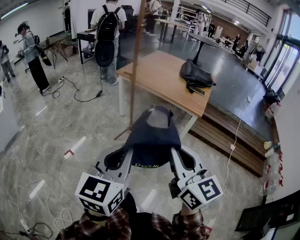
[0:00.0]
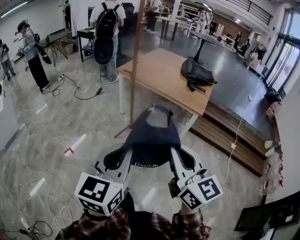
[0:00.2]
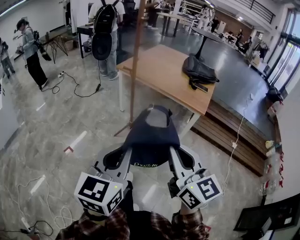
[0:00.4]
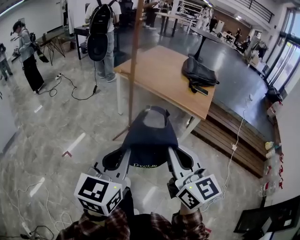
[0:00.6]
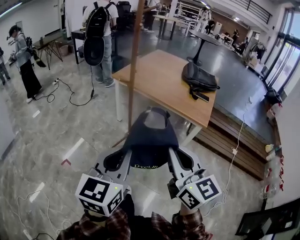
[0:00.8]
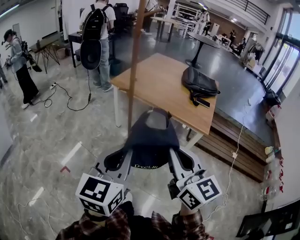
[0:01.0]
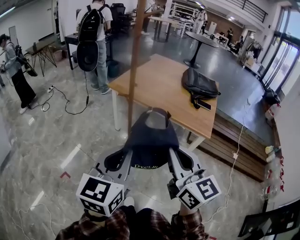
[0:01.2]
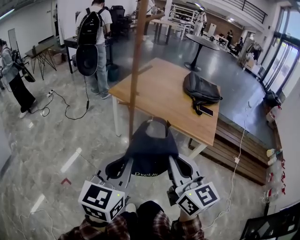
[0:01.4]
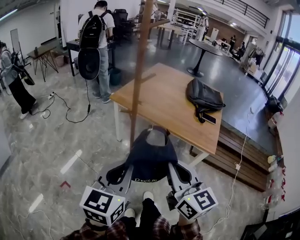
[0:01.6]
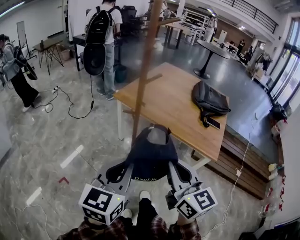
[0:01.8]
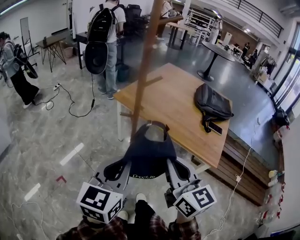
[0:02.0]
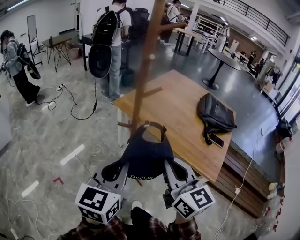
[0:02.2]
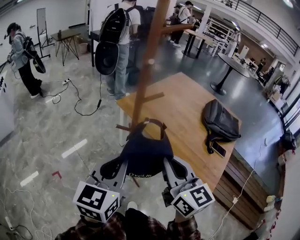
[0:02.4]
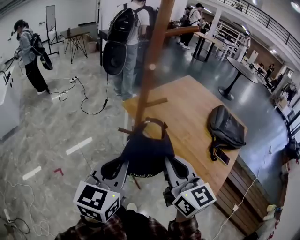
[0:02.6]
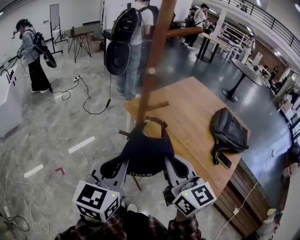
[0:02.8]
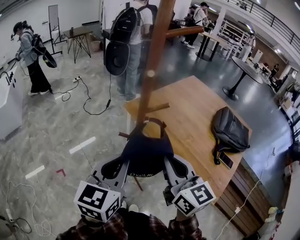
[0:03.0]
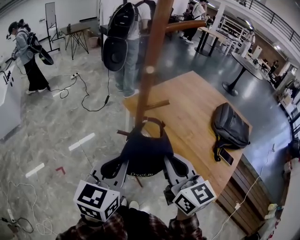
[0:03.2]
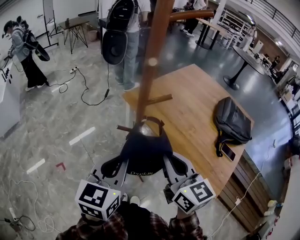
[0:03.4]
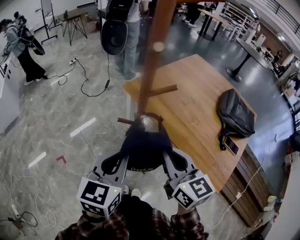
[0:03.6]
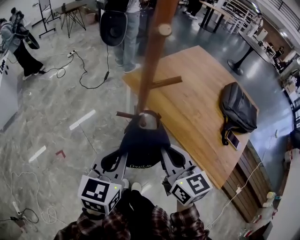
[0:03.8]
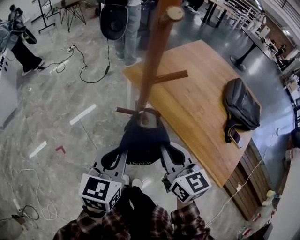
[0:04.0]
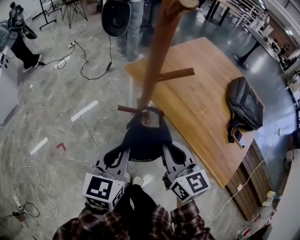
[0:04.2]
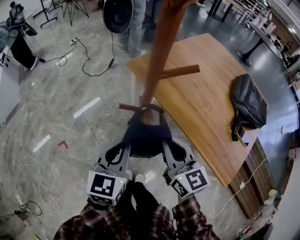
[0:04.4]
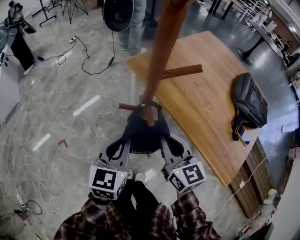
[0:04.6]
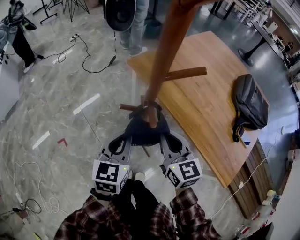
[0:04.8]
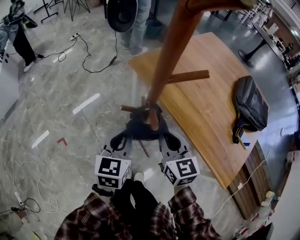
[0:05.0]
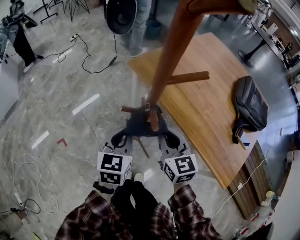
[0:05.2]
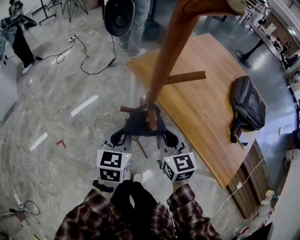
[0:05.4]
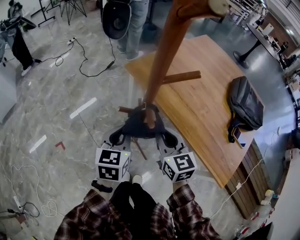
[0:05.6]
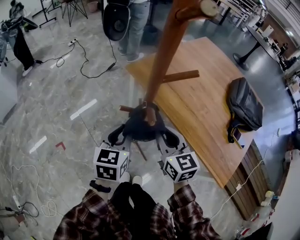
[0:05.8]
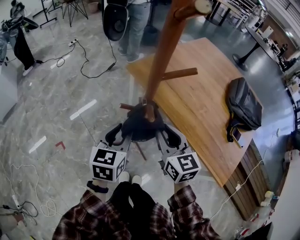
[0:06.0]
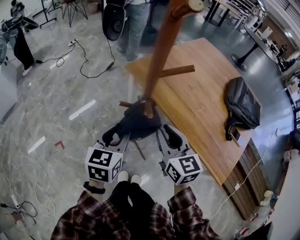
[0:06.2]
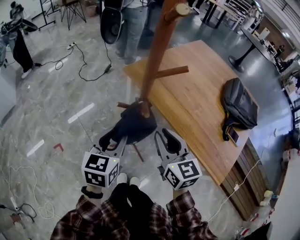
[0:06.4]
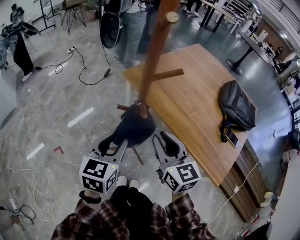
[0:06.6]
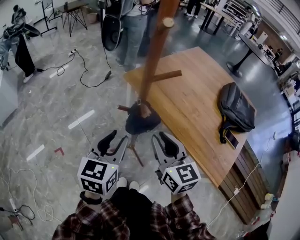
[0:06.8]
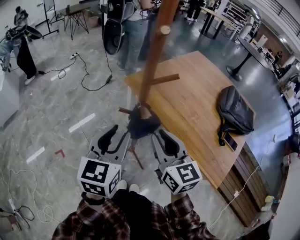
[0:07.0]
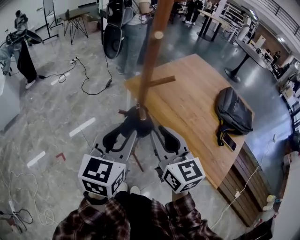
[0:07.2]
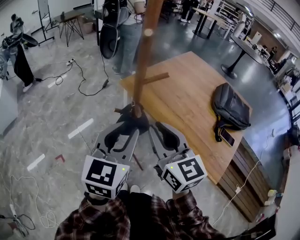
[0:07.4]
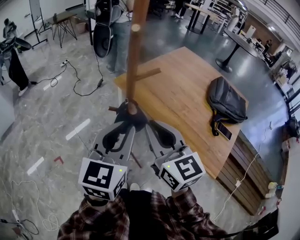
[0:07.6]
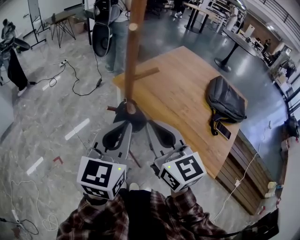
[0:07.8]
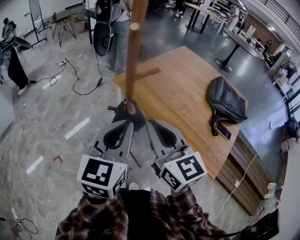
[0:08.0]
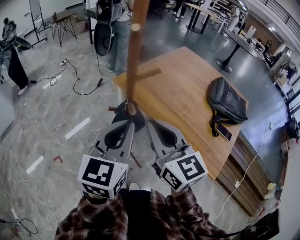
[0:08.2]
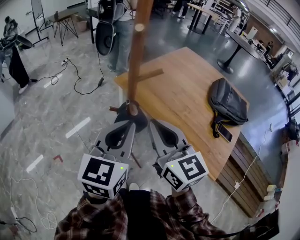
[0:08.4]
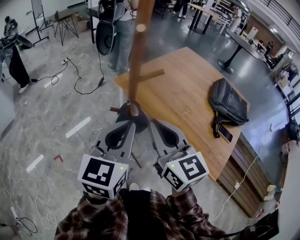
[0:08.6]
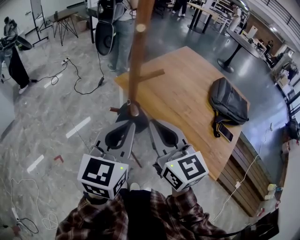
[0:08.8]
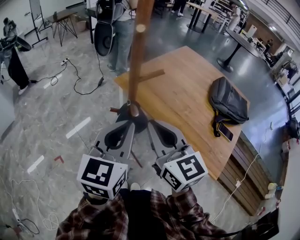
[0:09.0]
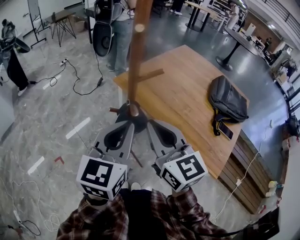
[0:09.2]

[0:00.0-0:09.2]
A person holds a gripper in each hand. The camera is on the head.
0:00.0 to 0:01.6: The grippers both shift forward by roughly 35 cm.
0:01.6 to 0:03.0: The grippers both shift forward by some 25 cm. The left gripper swivels about 20 degrees; the right gripper swivels approximately 20 degrees.
0:03.0 to 0:04.6: The two grippers go about 20 cm downward and forward.
0:04.6 to 0:06.2: The left gripper opens.
0:06.2 to 0:07.6: Both grippers move upward and backward, roughly 20 cm.
0:07.6 to 0:09.2: The grippers move only a little.

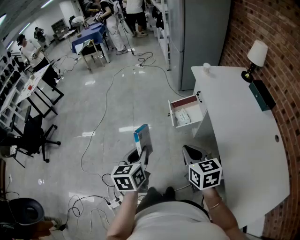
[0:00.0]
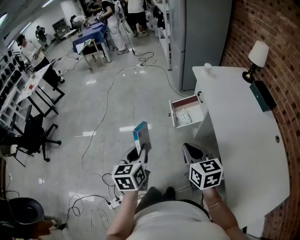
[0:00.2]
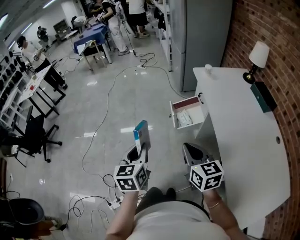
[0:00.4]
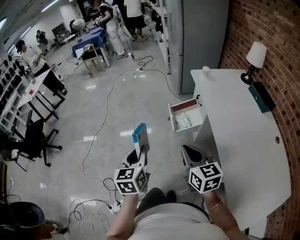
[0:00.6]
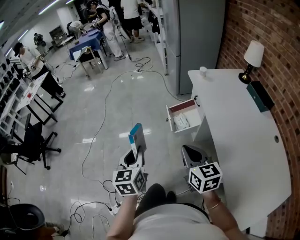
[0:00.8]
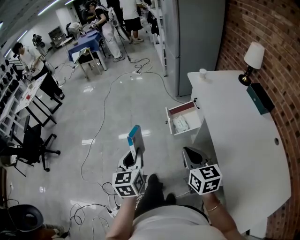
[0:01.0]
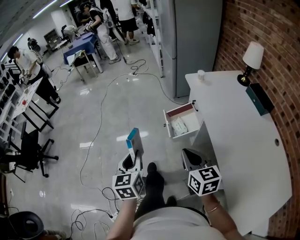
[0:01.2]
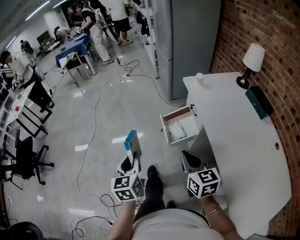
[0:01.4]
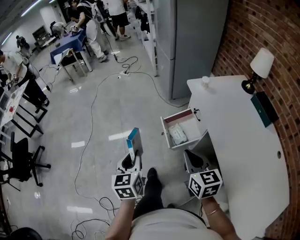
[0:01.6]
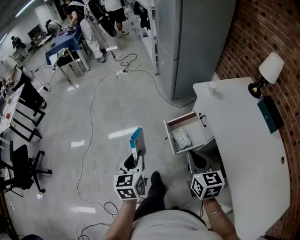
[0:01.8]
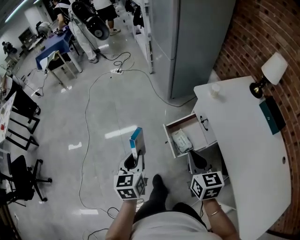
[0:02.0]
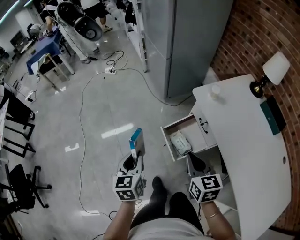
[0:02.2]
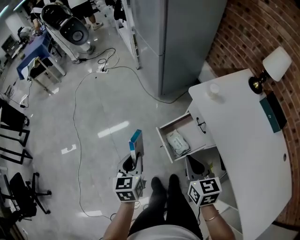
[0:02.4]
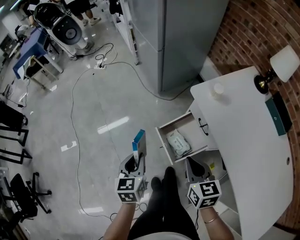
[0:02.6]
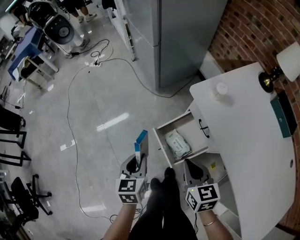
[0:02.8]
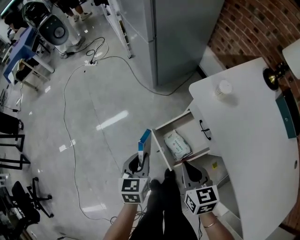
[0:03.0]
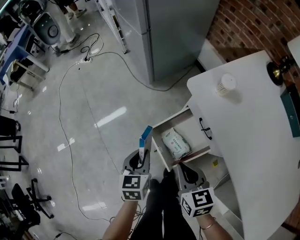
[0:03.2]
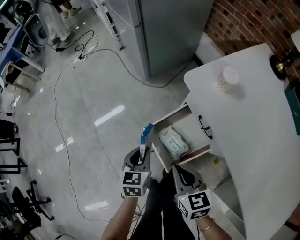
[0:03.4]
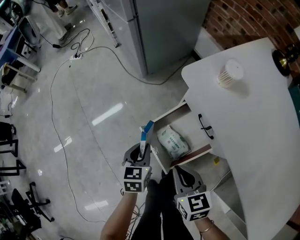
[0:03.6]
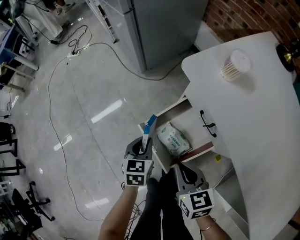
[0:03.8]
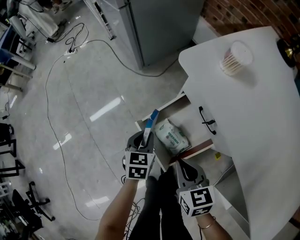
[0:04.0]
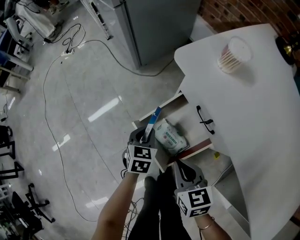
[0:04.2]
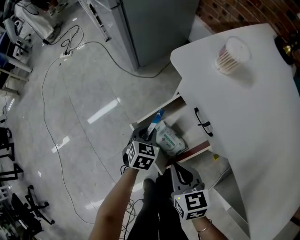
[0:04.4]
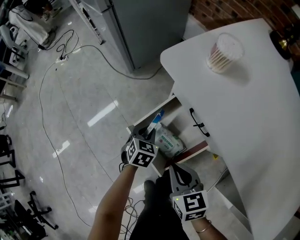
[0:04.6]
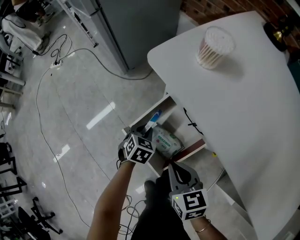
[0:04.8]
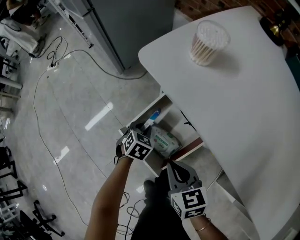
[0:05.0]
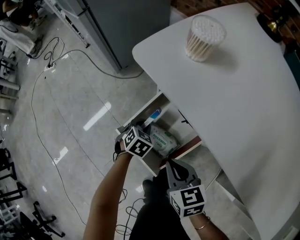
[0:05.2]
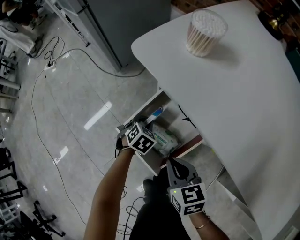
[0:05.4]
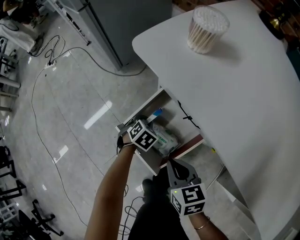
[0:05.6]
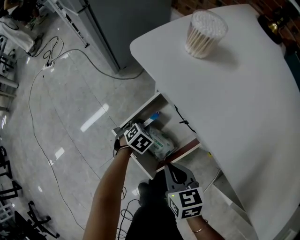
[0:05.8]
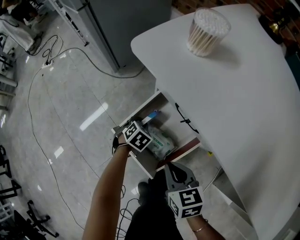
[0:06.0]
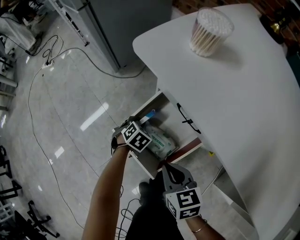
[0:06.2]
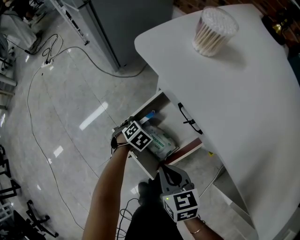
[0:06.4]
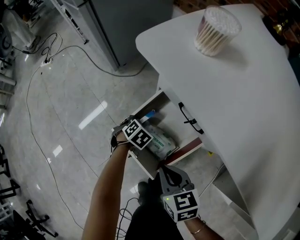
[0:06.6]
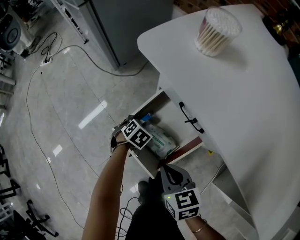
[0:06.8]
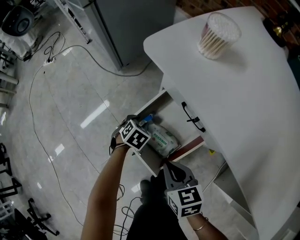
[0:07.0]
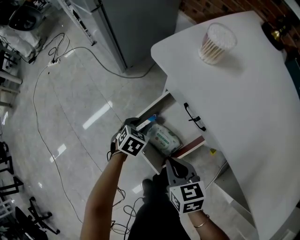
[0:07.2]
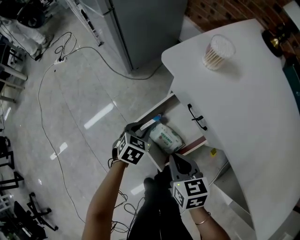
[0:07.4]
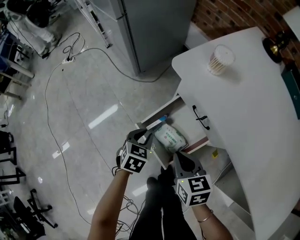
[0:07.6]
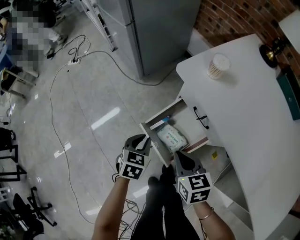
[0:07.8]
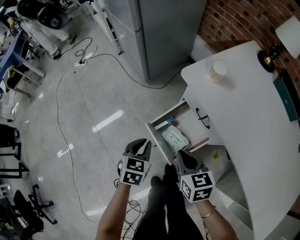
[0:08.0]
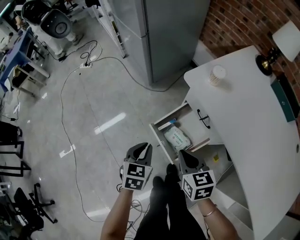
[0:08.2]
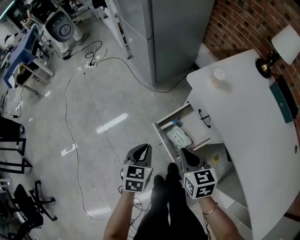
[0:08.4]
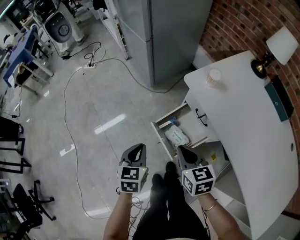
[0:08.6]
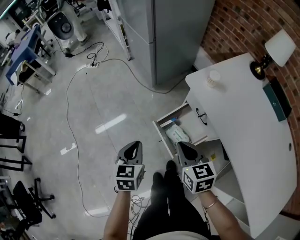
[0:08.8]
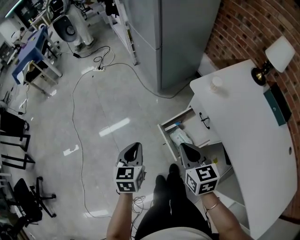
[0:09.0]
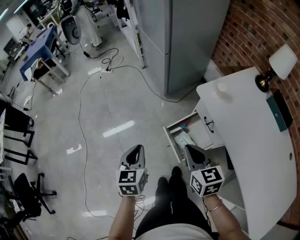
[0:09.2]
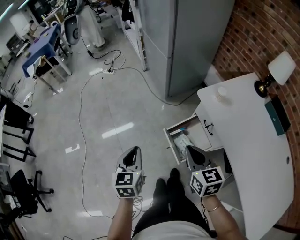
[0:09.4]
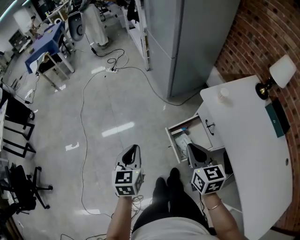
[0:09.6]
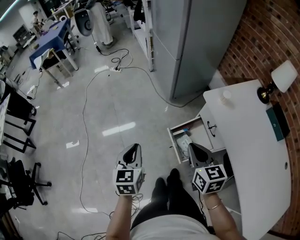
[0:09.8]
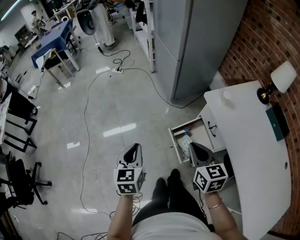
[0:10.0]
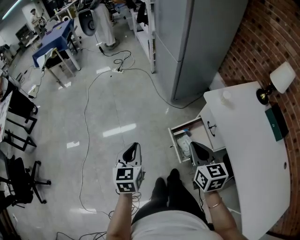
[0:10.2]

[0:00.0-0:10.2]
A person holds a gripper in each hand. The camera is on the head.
0:00.0 to 0:01.4: The two grippers go roughly 15 cm forward.
0:01.4 to 0:03.0: The two grippers travel together, forward, approximately 50 cm. Both grippers travel together downward, approximately 25 cm. The right gripper rotates roughly 20 degrees. The left gripper swivels about 30 degrees.
0:03.0 to 0:04.4: The left gripper is displaced downward and to the right by approximately 30 cm, and swivels some 30 degrees. Meanwhile the right gripper heads downward, covering roughly 20 cm.
0:04.4 to 0:05.8: The left gripper goes roughly 15 cm downward and to the right, and turns by some 30 degrees; the right gripper is displaced downward by some 5 cm.
0:05.8 to 0:07.2: The left gripper moves upward and to the left, roughly 10 cm.
0:07.2 to 0:08.8: The right gripper goes approximately 30 cm upward. Meanwhile the left gripper goes roughly 50 cm upward, backward and to the left, turns by roughly 40 degrees, and closes its fingers.
0:08.8 to 0:10.2: The left gripper moves to the left, upward and backward, approximately 20 cm; the right gripper heads upward, to the left and backward, covering roughly 15 cm.

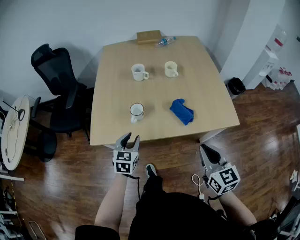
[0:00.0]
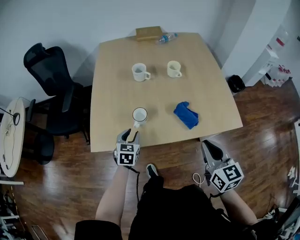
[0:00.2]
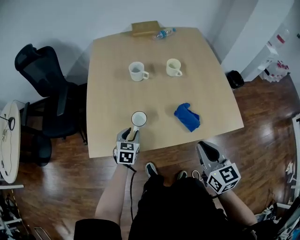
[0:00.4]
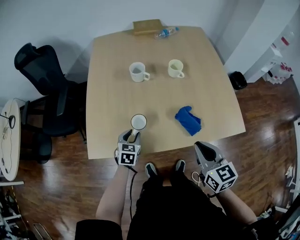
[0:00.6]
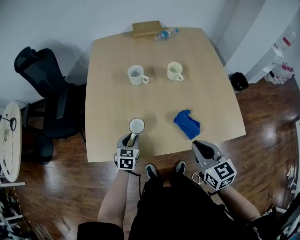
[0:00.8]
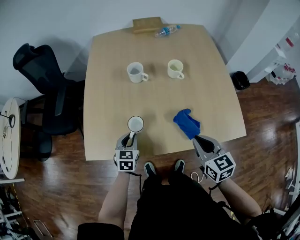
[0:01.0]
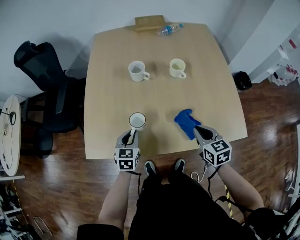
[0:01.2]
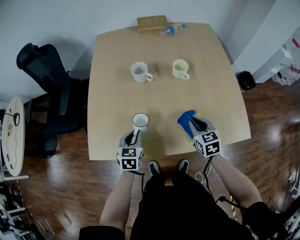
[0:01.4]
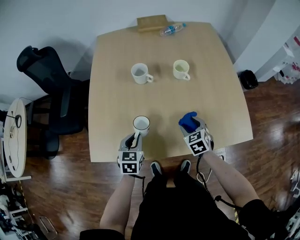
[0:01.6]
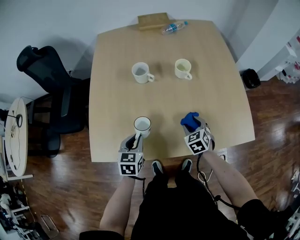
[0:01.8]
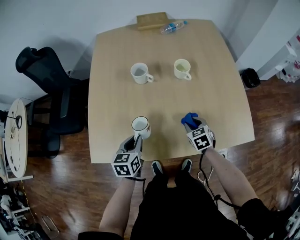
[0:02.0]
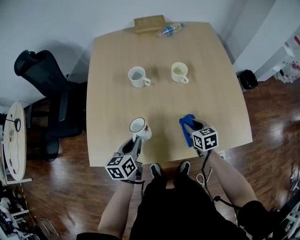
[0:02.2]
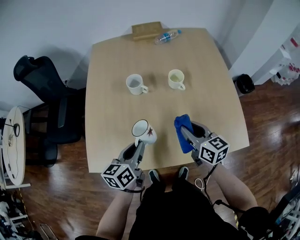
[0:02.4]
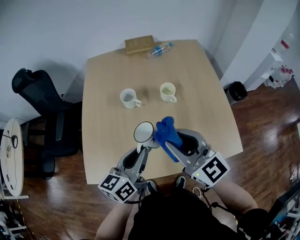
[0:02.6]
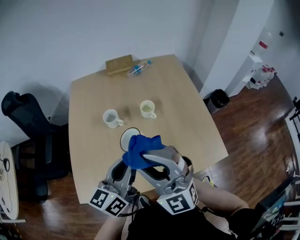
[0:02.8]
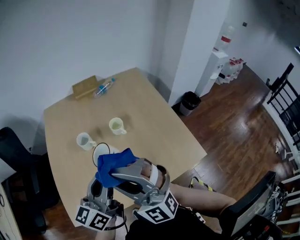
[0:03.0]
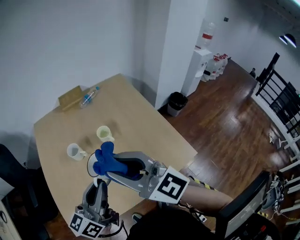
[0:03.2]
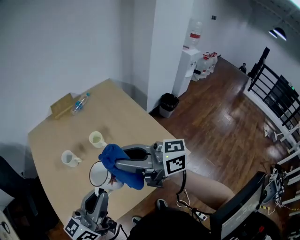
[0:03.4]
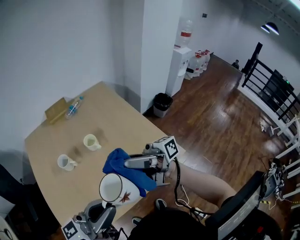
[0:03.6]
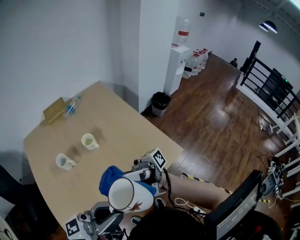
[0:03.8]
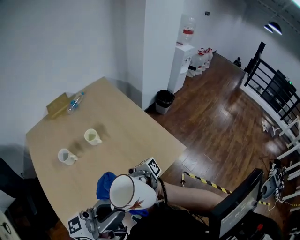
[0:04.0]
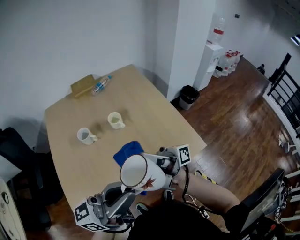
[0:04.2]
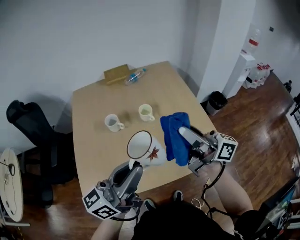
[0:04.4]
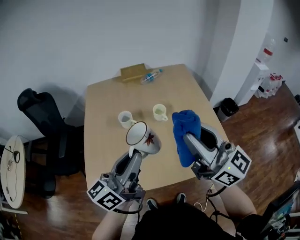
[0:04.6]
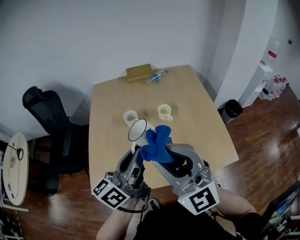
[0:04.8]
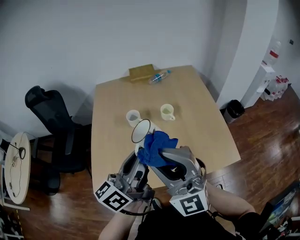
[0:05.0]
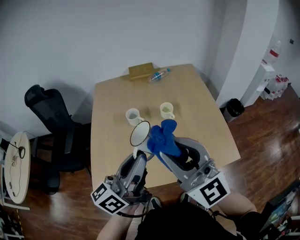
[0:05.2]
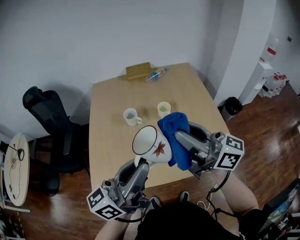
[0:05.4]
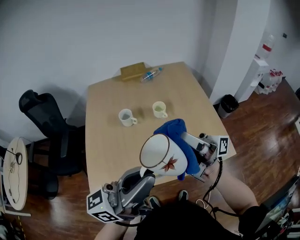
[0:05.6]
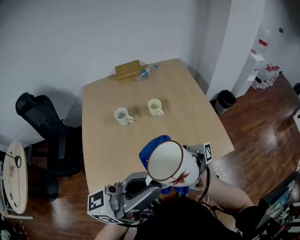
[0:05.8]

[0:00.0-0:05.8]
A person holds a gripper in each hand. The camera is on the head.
0:00.0 to 0:01.4: The right gripper travels forward and downward by roughly 30 cm, and changes its angle by about 20 degrees, while the left gripper moves forward, some 15 cm.
0:01.4 to 0:02.8: The left gripper travels upward and to the right by about 30 cm, and tilts its fingers some 40 degrees upward. Meanwhile the right gripper heads upward and to the left, covering roughly 30 cm, tips its fingers upward by some 40 degrees, and opens, then closes again.
0:02.8 to 0:04.4: The right gripper shifts by approximately 20 cm, and twists some 80 degrees clockwise, seen from behind. The left gripper moves upward, roughly 10 cm, and turns by roughly 30 degrees.
0:04.4 to 0:05.8: The right gripper ends up roughly 15 cm from where it was, and twists some 50 degrees clockwise, seen from behind. The left gripper moves approximately 10 cm.
